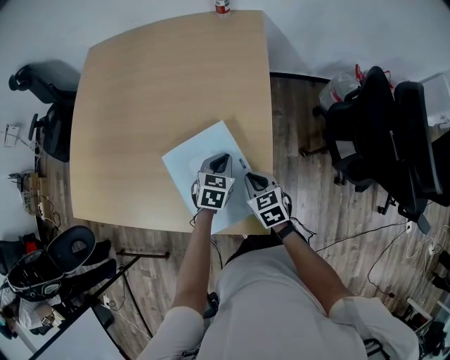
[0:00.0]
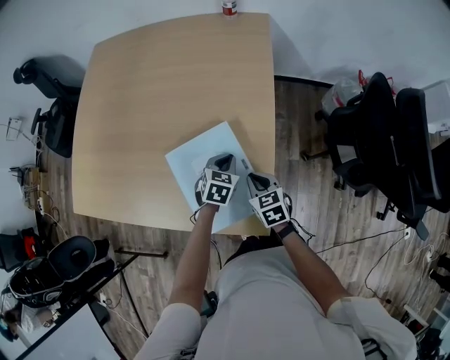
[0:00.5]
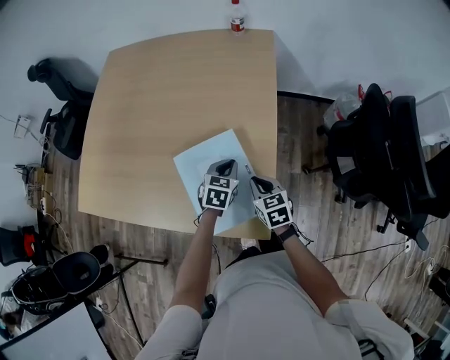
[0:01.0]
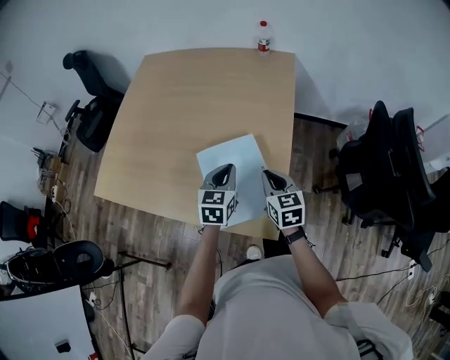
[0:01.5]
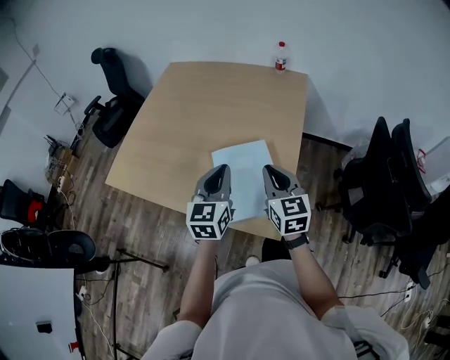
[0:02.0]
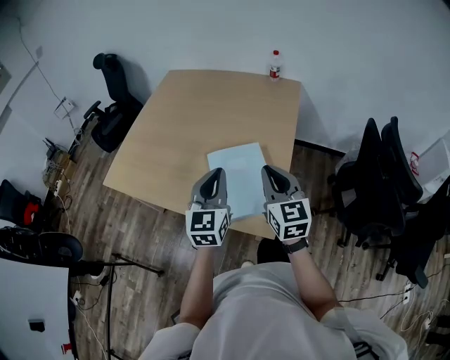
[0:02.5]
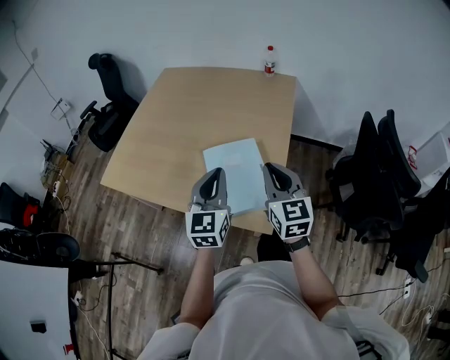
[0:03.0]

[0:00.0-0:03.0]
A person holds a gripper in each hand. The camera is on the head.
0:00.0 to 0:01.5: The left gripper moves upward and to the left, some 15 cm, and rotates some 20 degrees. Meanwhile the right gripper heads upward, covering about 15 cm.
0:01.5 to 0:03.0: The two grippers go some 20 cm upward and backward. The left gripper turns by roughly 30 degrees. The right gripper changes its angle by approximately 20 degrees.

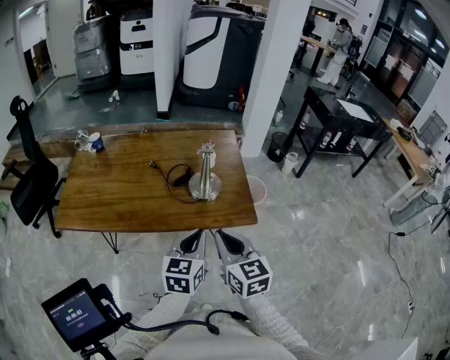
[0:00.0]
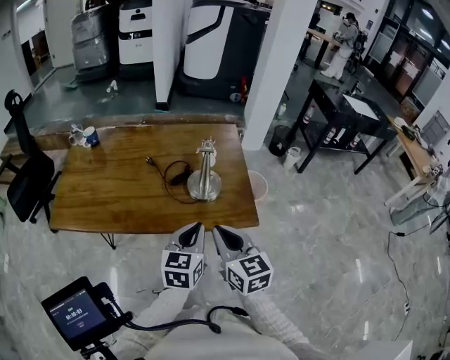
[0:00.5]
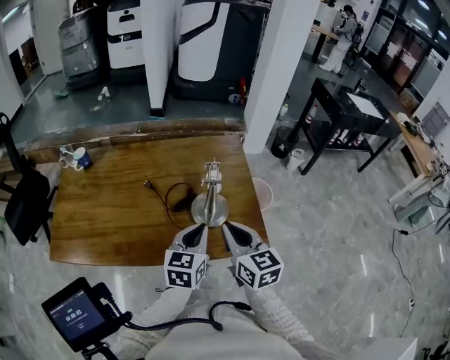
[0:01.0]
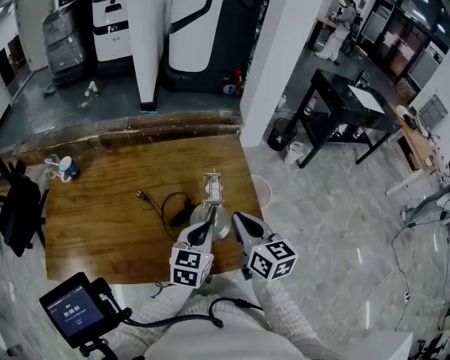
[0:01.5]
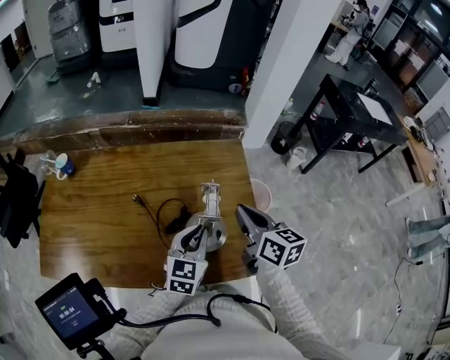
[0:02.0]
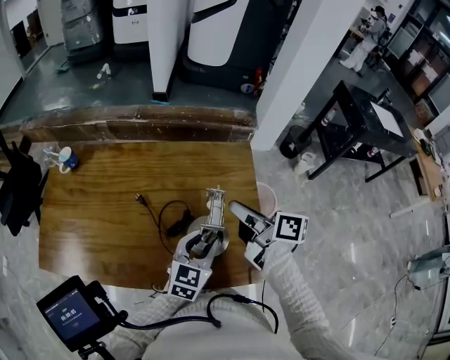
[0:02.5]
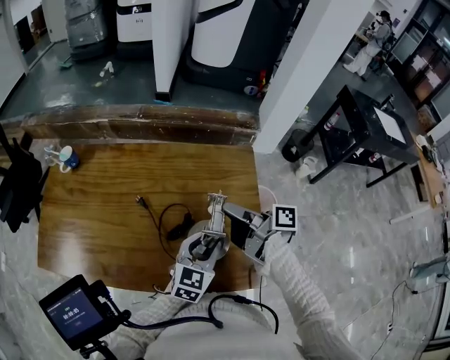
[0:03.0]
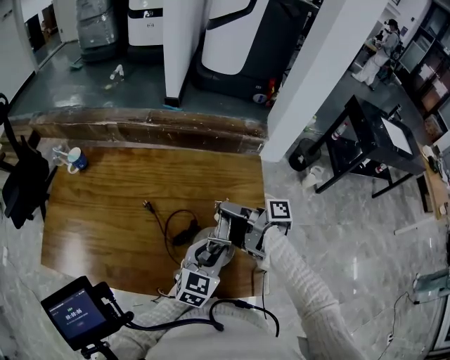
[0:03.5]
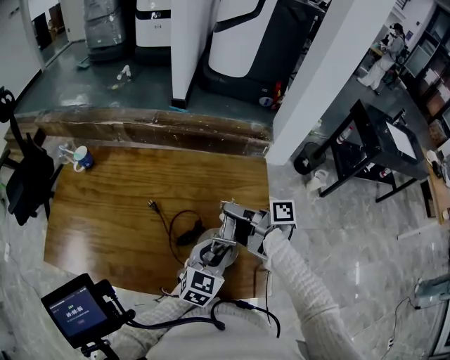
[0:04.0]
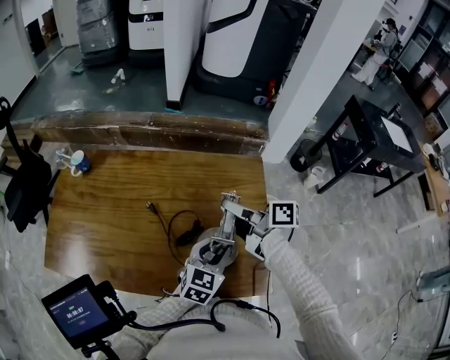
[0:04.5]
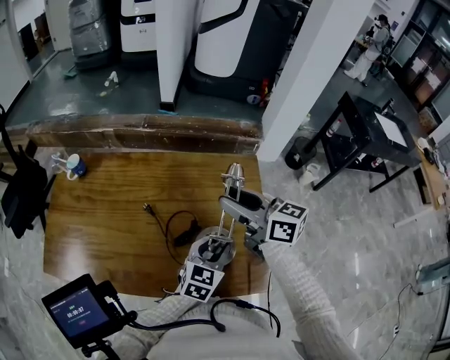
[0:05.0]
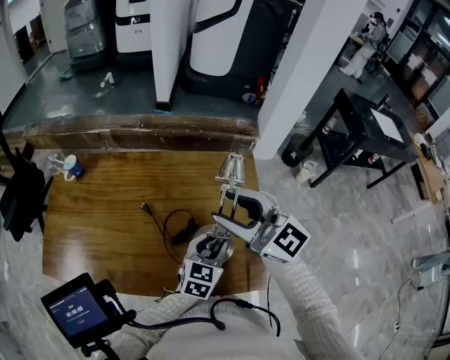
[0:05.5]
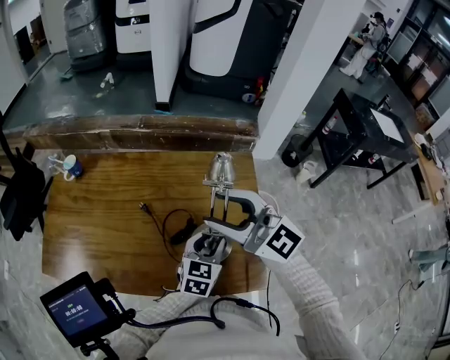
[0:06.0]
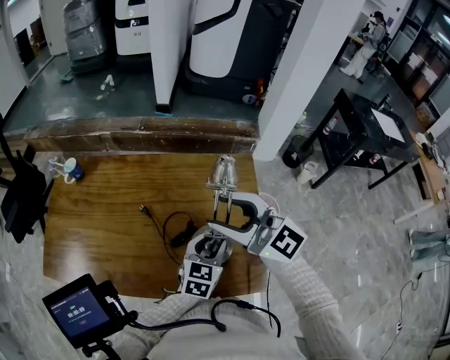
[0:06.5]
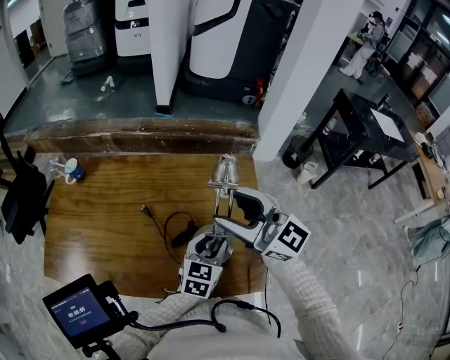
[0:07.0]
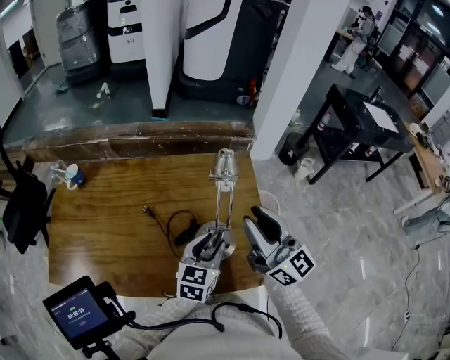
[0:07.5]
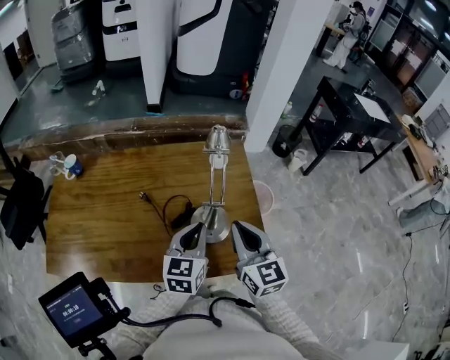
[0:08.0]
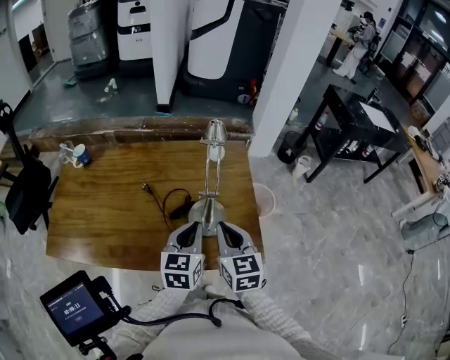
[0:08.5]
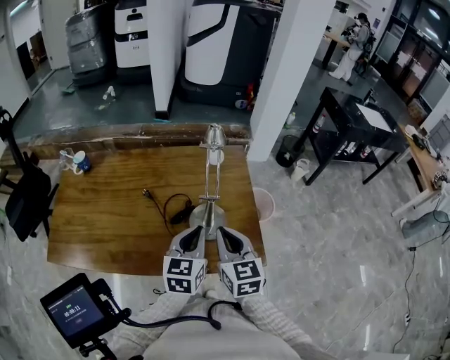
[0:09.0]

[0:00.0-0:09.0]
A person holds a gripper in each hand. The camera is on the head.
0:00.0 to 0:02.0: The grippers both shift forward by roughly 30 cm. The right gripper rotates about 20 degrees.
0:02.0 to 0:04.5: The right gripper moves forward and to the left, approximately 10 cm, changes its angle by some 50 degrees, and opens its fingers. Meanwhile the left gripper opens its fingers.
0:04.5 to 0:07.0: The right gripper heads upward and backward, covering some 15 cm, and twists approximately 70 degrees counterclockwise, seen from behind.
0:07.0 to 0:09.0: The right gripper travels downward and backward by some 20 cm, changes its angle by approximately 50 degrees, and closes its fingers. The left gripper moves backward and upward, roughly 10 cm, and closes.

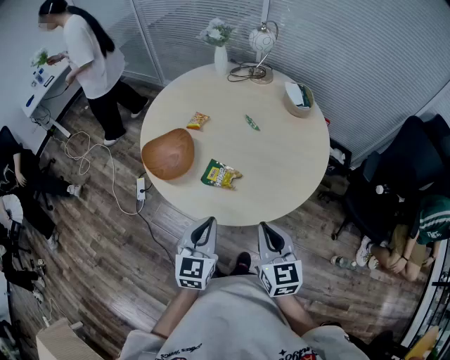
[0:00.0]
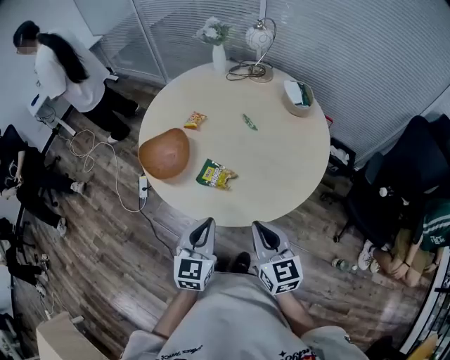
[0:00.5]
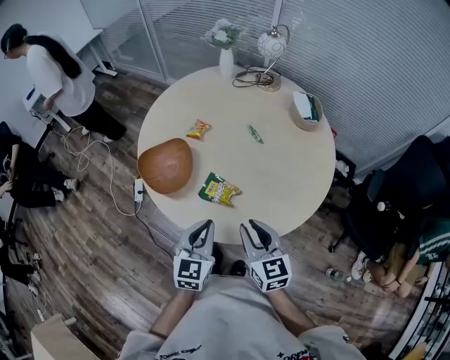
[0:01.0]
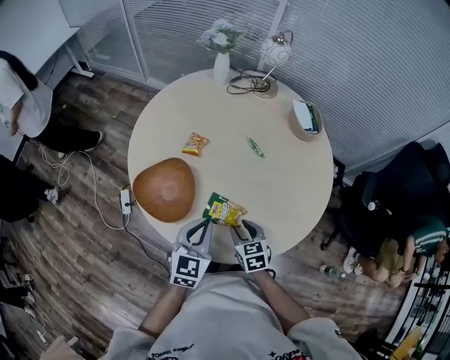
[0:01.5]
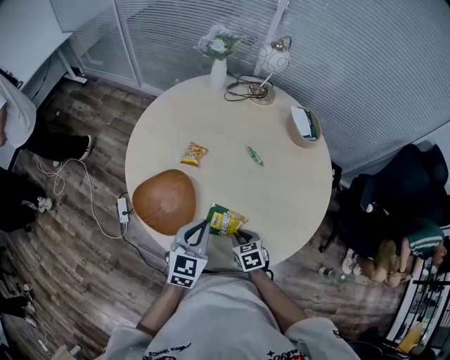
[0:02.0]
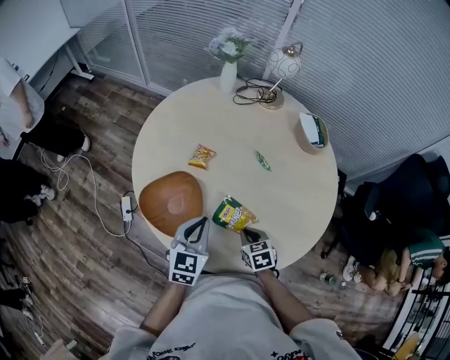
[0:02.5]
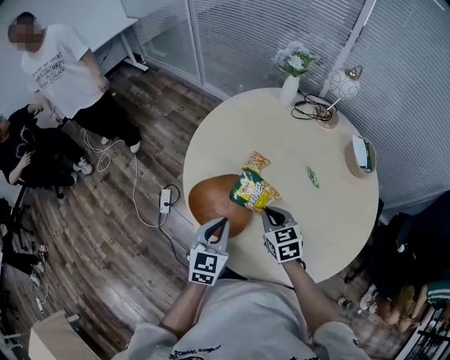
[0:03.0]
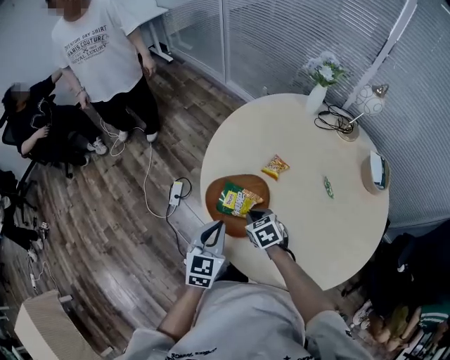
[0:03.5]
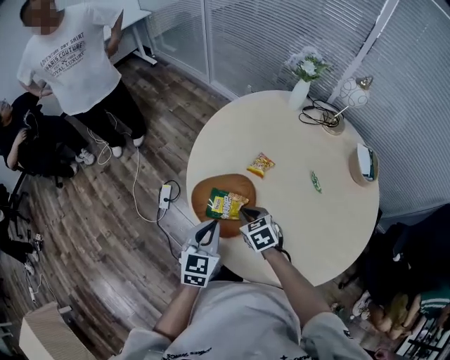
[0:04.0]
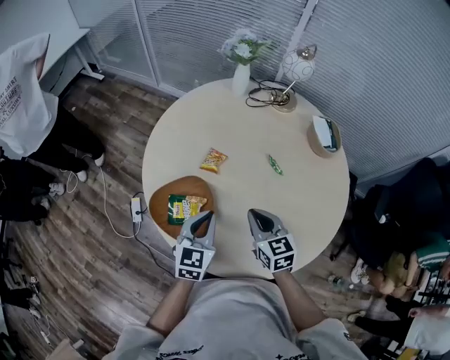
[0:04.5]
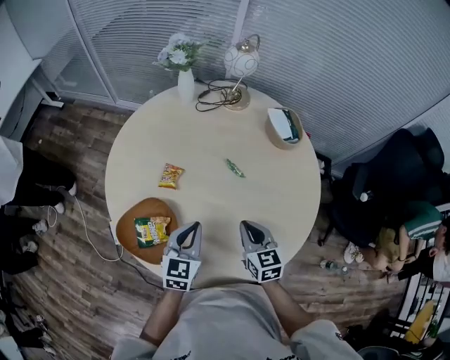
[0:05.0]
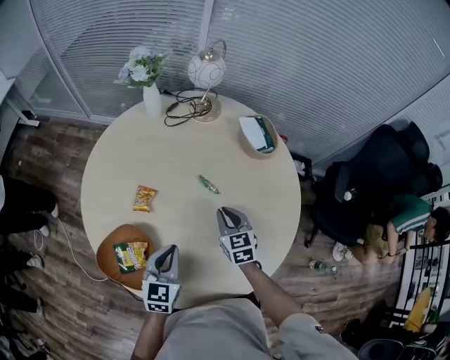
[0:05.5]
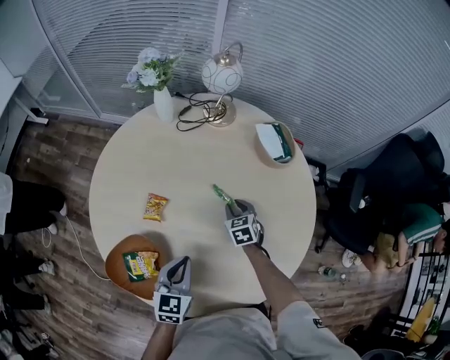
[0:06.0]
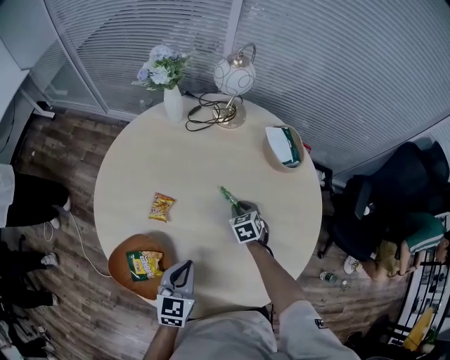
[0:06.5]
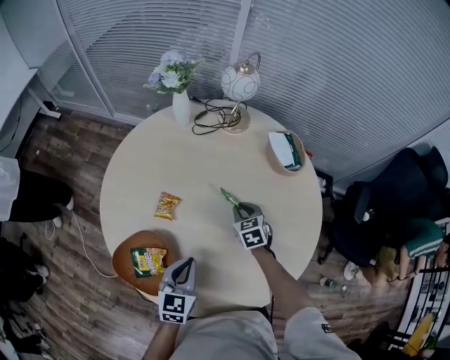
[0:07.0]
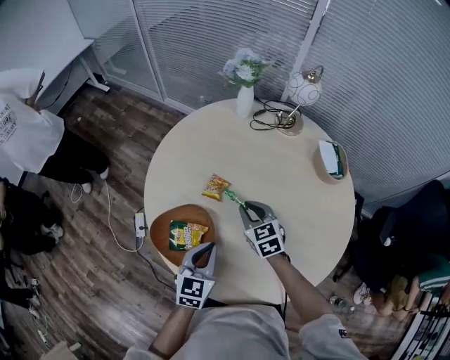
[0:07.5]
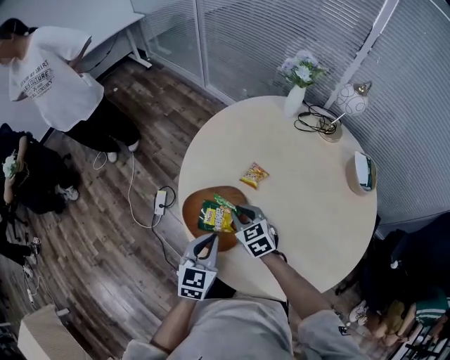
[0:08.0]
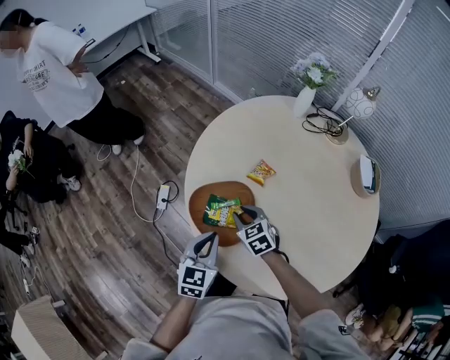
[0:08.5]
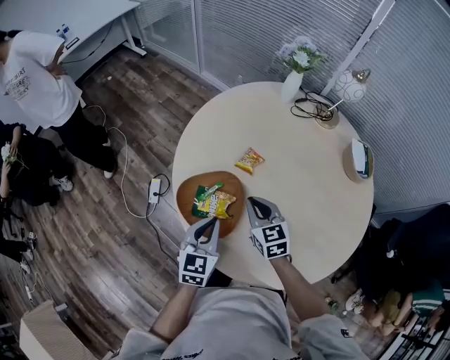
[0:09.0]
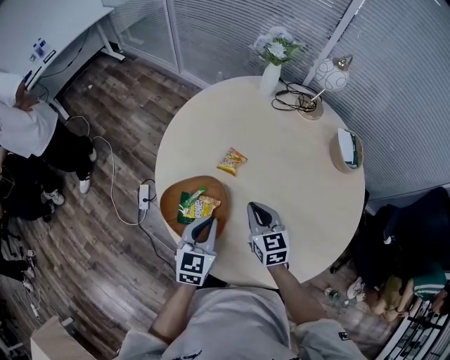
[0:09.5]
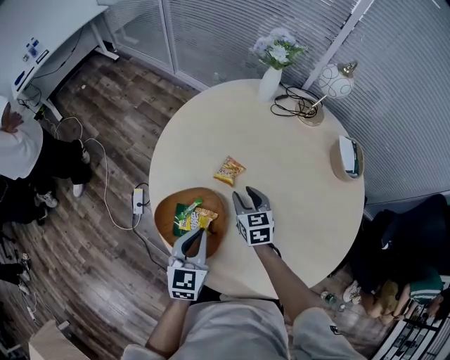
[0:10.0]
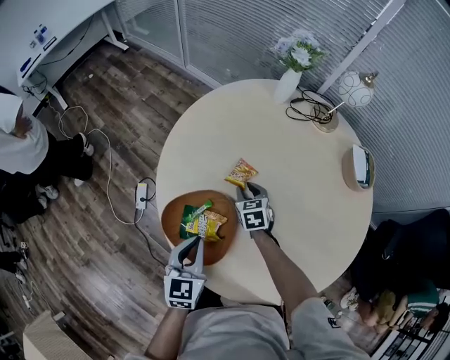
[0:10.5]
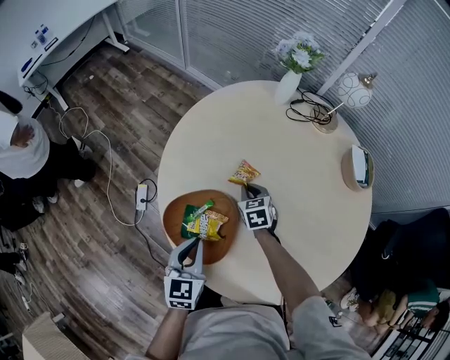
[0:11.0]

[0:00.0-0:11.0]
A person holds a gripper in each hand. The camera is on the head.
0:00.0 to 0:02.0: The left gripper goes some 20 cm forward, while the right gripper is displaced downward and forward by approximately 30 cm, tilts its fingers approximately 40 degrees downward, and opens, then closes once more.
0:02.0 to 0:03.5: The right gripper moves approximately 25 cm, and swivels approximately 30 degrees, while the left gripper ends up roughly 15 cm from where it was, and turns by about 30 degrees.
0:03.5 to 0:05.5: The left gripper shifts by roughly 25 cm, and rotates about 30 degrees. The right gripper shifts by about 35 cm, and rotates approximately 50 degrees.
0:05.5 to 0:07.5: The right gripper heads to the left, covering approximately 15 cm, and changes its angle by some 30 degrees; the left gripper moves to the left, approximately 5 cm.
0:07.5 to 0:09.0: The left gripper moves to the left, some 10 cm. Meanwhile the right gripper heads to the left and backward, covering roughly 10 cm.
0:09.0 to 0:11.0: The right gripper shifts roughly 20 cm downward and forward, rotates approximately 20 degrees, and opens, then closes once more.

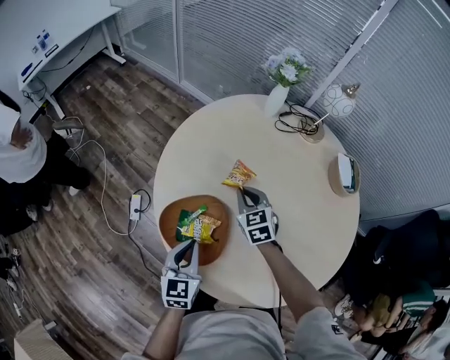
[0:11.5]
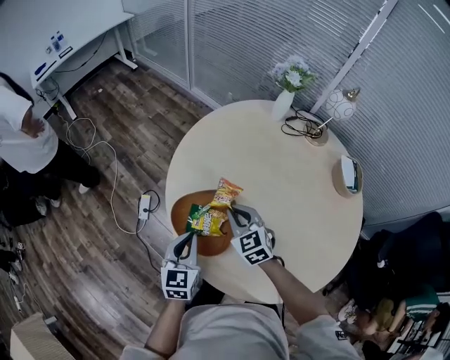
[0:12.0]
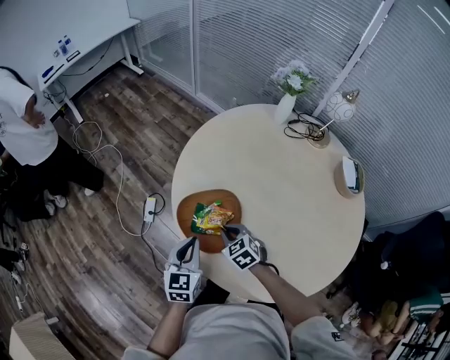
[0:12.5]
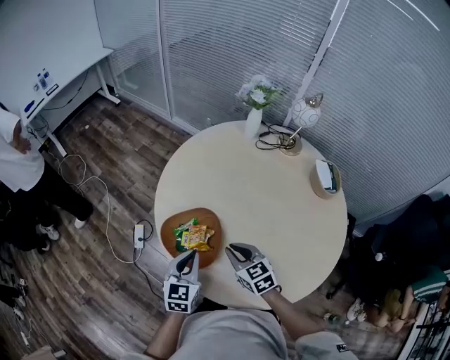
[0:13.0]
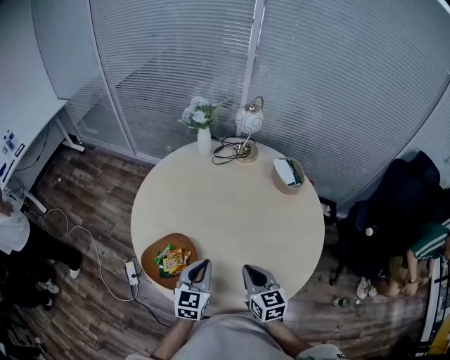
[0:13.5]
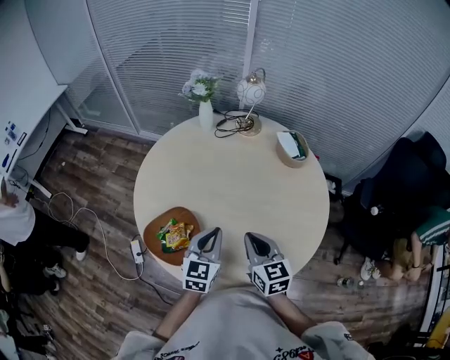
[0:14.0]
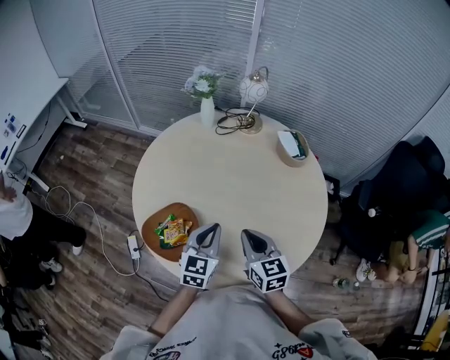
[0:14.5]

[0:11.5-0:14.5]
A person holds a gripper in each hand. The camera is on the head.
0:11.5 to 0:13.0: The right gripper travels backward by approximately 20 cm.
0:13.0 to 0:14.5: The right gripper shifts by roughly 15 cm, and rotates about 30 degrees. Meanwhile the left gripper ends up roughly 15 cm from where it was, and turns by some 20 degrees.
